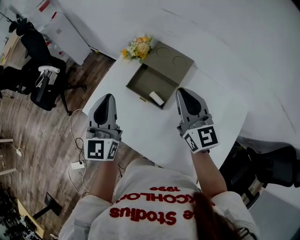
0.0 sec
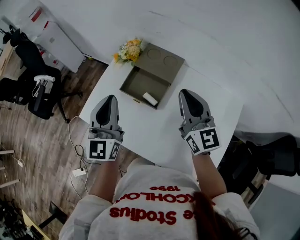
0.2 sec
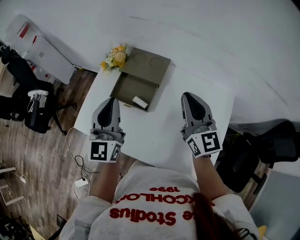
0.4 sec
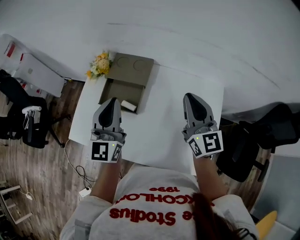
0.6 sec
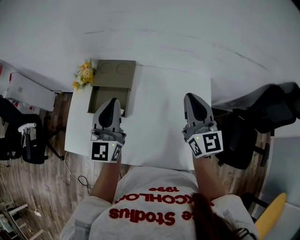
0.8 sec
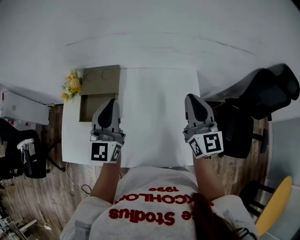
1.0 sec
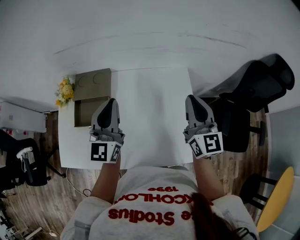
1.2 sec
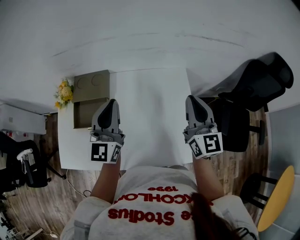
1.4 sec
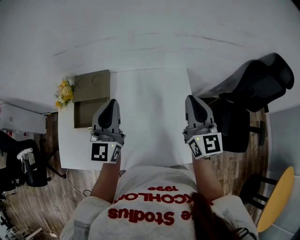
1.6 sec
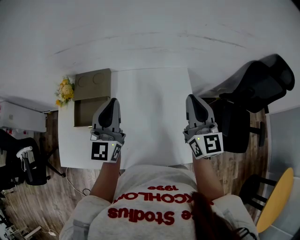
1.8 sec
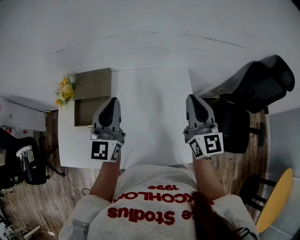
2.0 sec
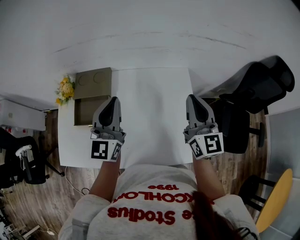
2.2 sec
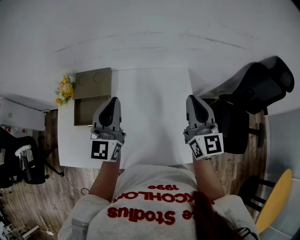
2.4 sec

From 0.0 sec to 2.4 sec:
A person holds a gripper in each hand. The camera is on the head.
From 0.0 sec to 1.2 sec: The left gripper ends up about 25 cm from where it was, and turns by about 40 degrees. The right gripper changes place by roughly 30 cm, and rotates approximately 50 degrees.
From 1.2 sec to 2.4 sec: Both grippers stay about where they are.

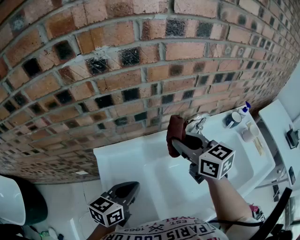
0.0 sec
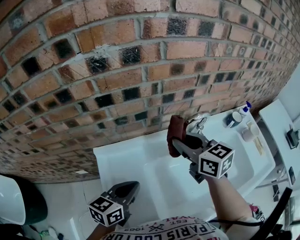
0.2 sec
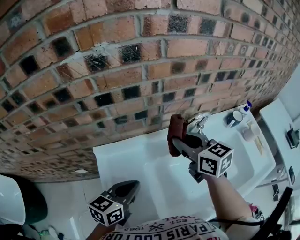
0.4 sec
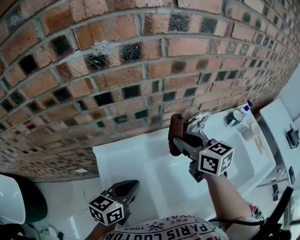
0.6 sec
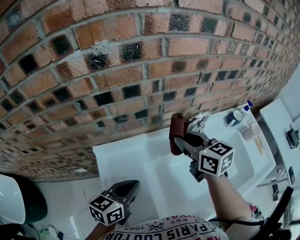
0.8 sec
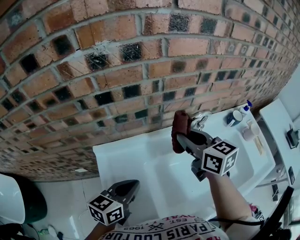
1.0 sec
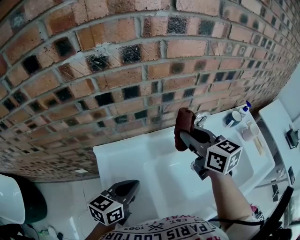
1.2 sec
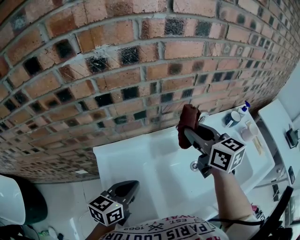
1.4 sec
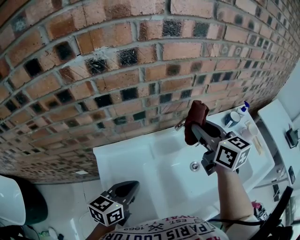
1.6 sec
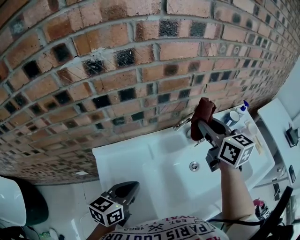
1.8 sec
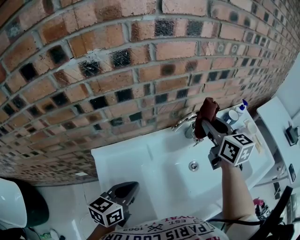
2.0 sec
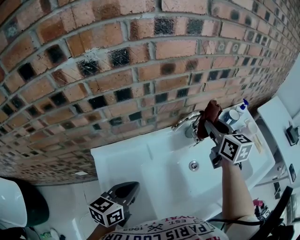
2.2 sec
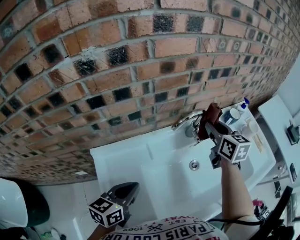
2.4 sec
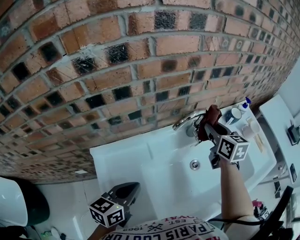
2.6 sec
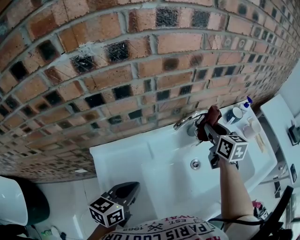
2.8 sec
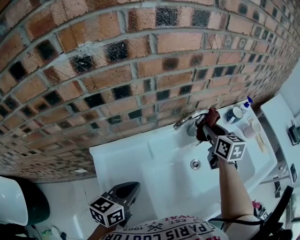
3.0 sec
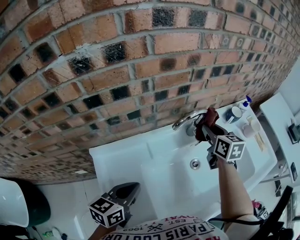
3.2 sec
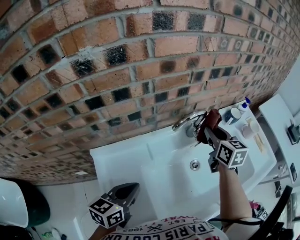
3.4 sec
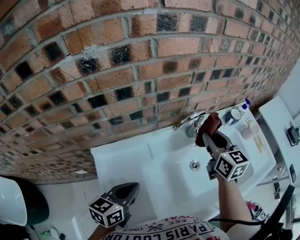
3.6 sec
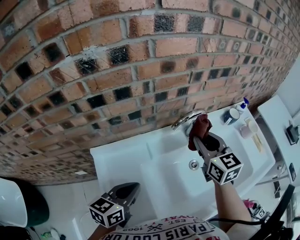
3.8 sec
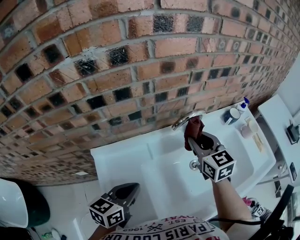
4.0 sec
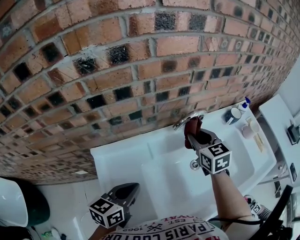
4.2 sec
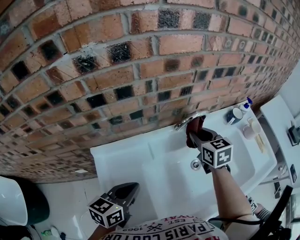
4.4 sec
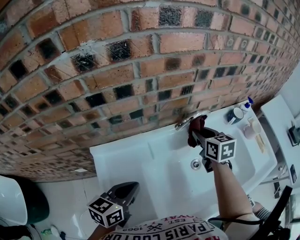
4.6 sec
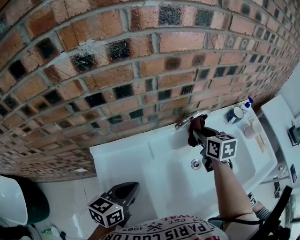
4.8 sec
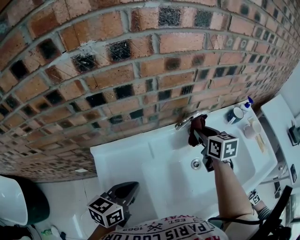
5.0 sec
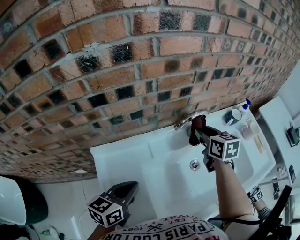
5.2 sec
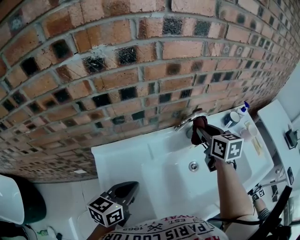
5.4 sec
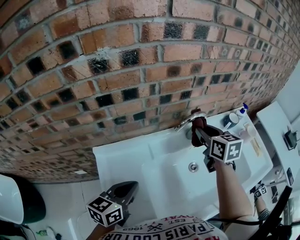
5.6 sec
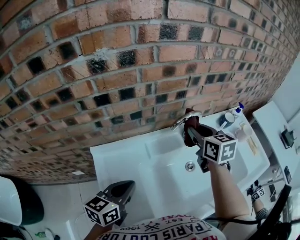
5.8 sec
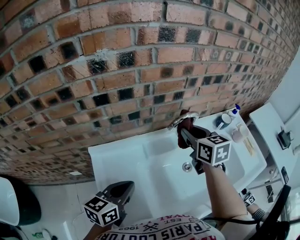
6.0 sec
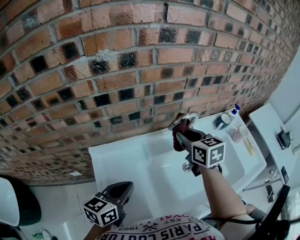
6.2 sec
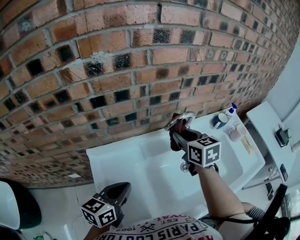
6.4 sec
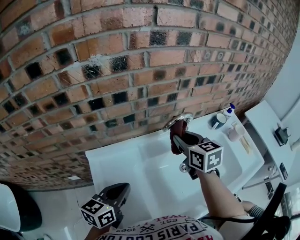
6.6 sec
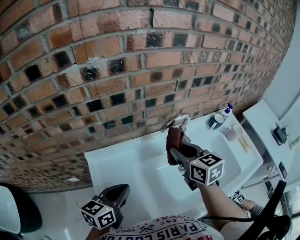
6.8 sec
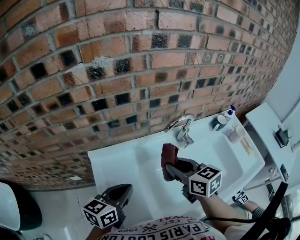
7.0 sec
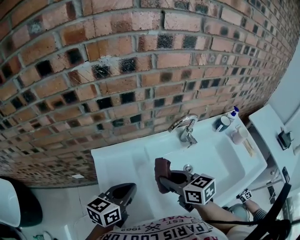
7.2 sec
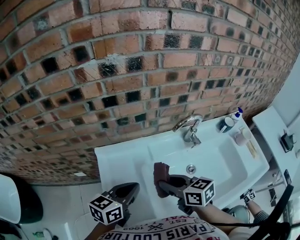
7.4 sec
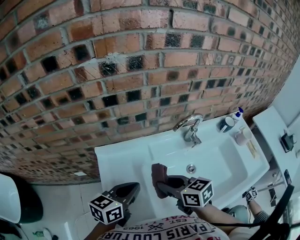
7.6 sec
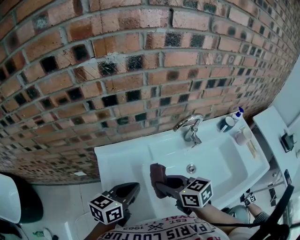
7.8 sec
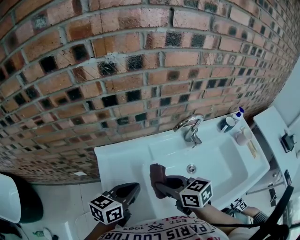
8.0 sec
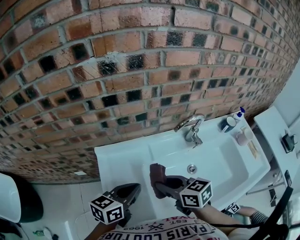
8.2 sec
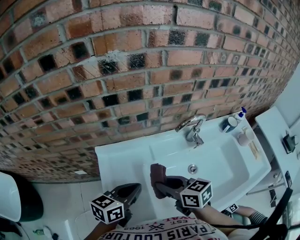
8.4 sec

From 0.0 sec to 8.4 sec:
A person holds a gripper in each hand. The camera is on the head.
From 0.0 sec to 1.4 sec: The right gripper ends up roughly 5 cm from where it was.
From 1.4 sec to 2.8 sec: The right gripper heads to the right, downward and forward, covering some 15 cm, and turns by approximately 20 degrees.
From 2.8 sec to 4.2 sec: The right gripper goes approximately 5 cm to the left, and swivels some 20 degrees.
From 4.2 sec to 5.6 sec: The right gripper moves roughly 5 cm.
From 5.6 sec to 7.0 sec: The right gripper shifts approximately 15 cm backward and to the left, and turns by roughly 20 degrees.
From 7.0 sec to 8.4 sec: The right gripper heads to the left and downward, covering about 10 cm.

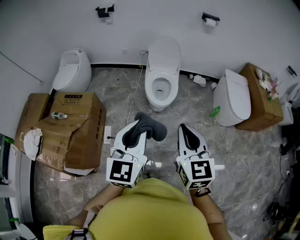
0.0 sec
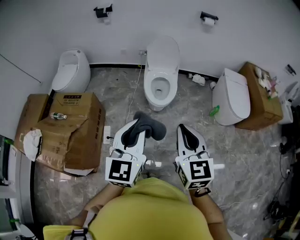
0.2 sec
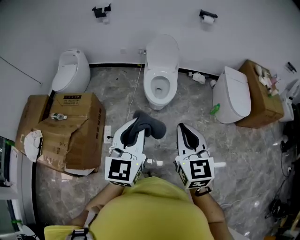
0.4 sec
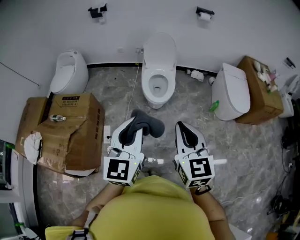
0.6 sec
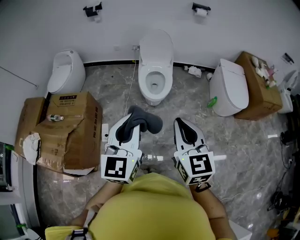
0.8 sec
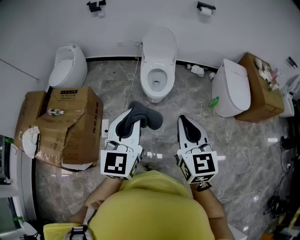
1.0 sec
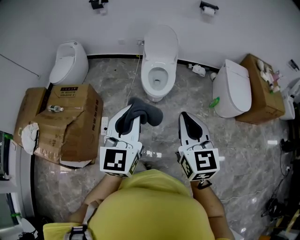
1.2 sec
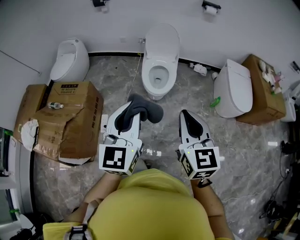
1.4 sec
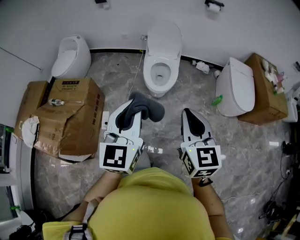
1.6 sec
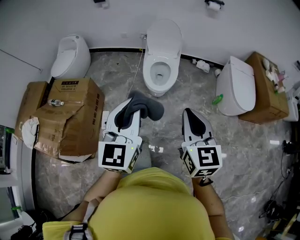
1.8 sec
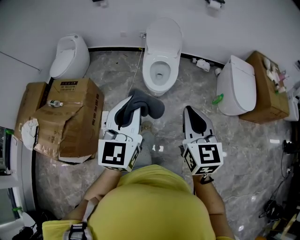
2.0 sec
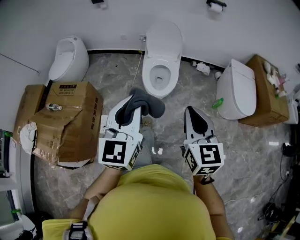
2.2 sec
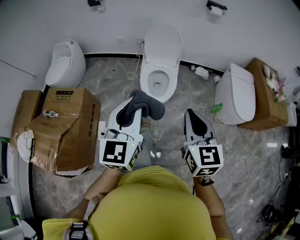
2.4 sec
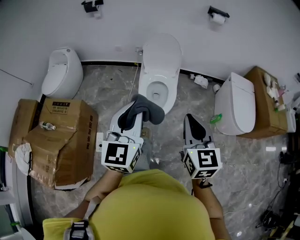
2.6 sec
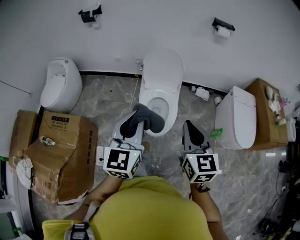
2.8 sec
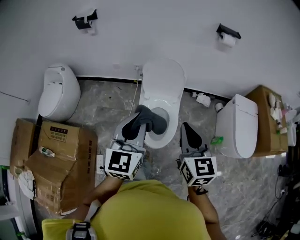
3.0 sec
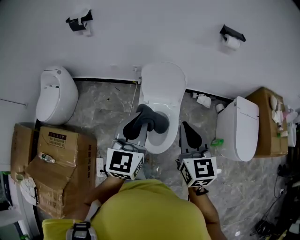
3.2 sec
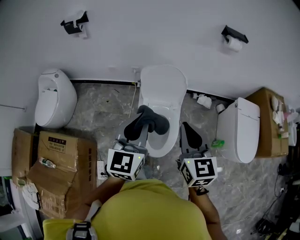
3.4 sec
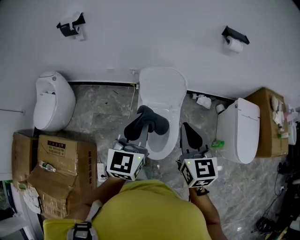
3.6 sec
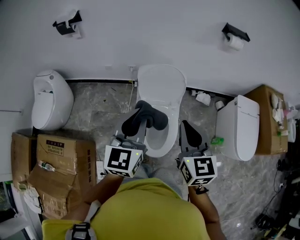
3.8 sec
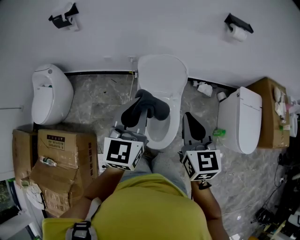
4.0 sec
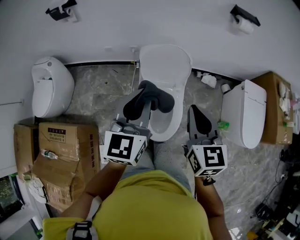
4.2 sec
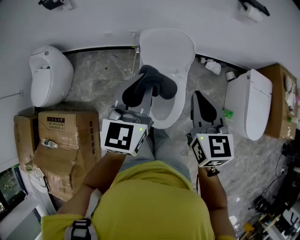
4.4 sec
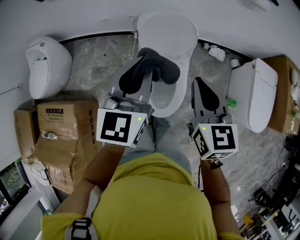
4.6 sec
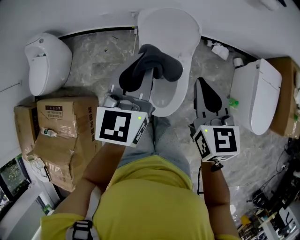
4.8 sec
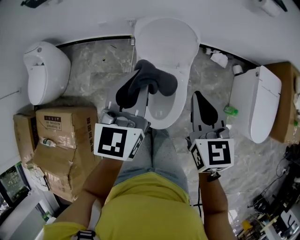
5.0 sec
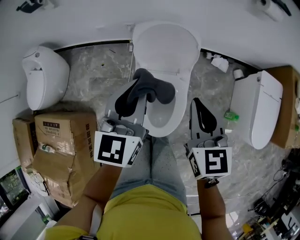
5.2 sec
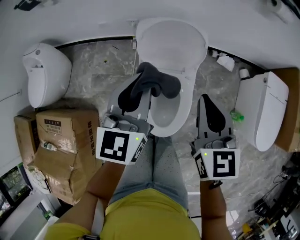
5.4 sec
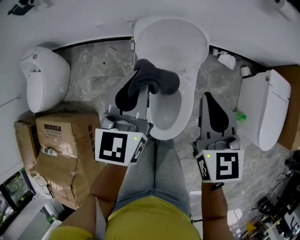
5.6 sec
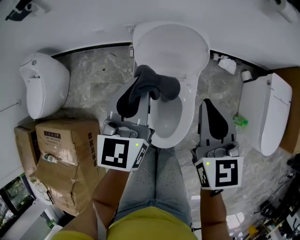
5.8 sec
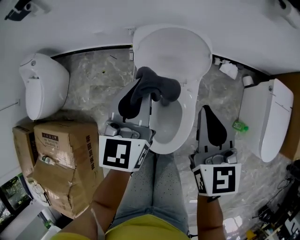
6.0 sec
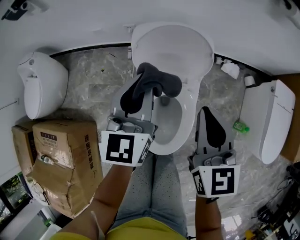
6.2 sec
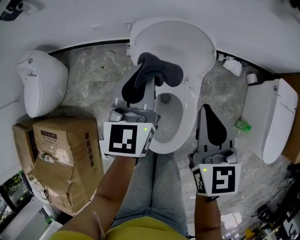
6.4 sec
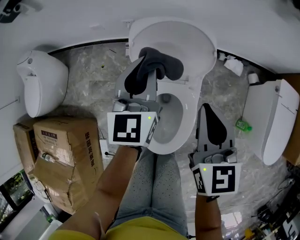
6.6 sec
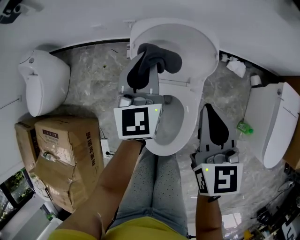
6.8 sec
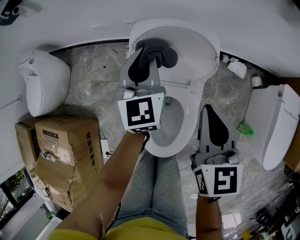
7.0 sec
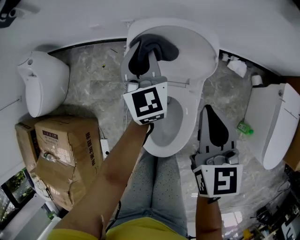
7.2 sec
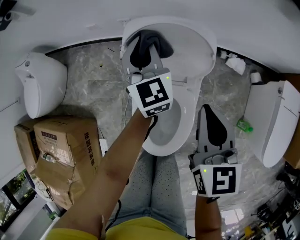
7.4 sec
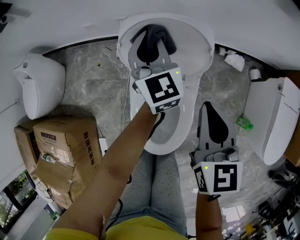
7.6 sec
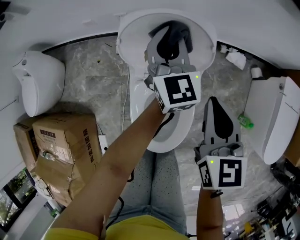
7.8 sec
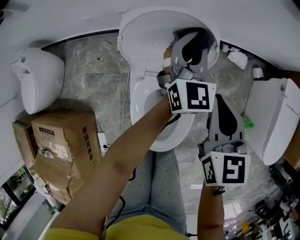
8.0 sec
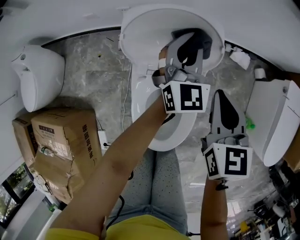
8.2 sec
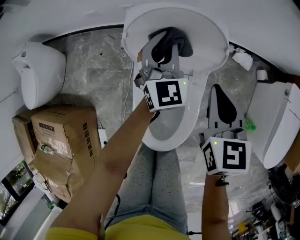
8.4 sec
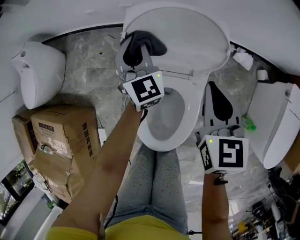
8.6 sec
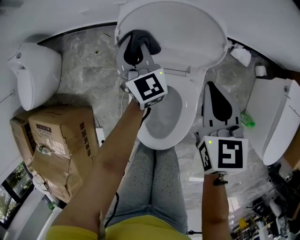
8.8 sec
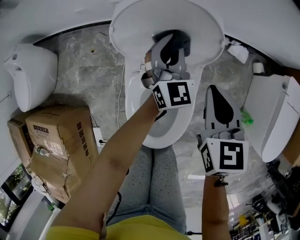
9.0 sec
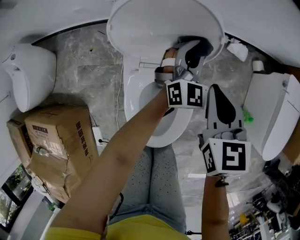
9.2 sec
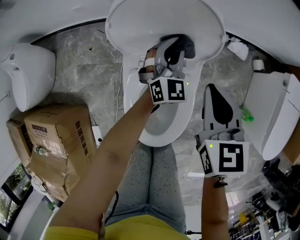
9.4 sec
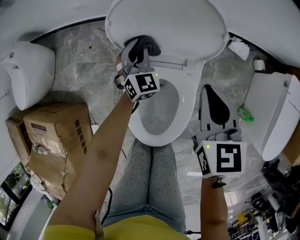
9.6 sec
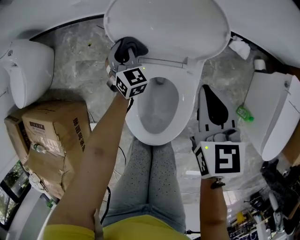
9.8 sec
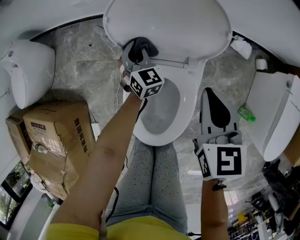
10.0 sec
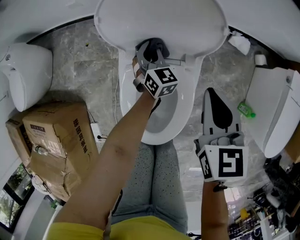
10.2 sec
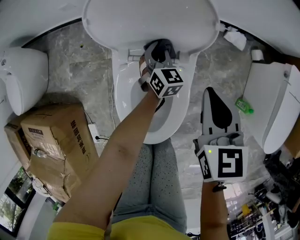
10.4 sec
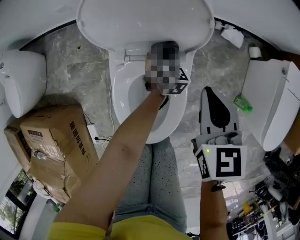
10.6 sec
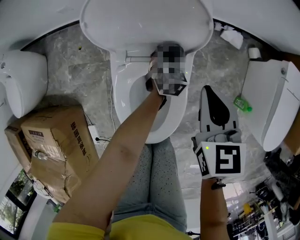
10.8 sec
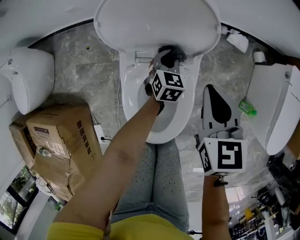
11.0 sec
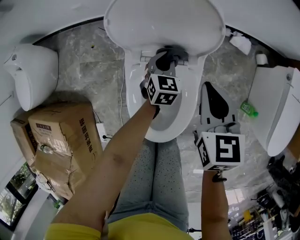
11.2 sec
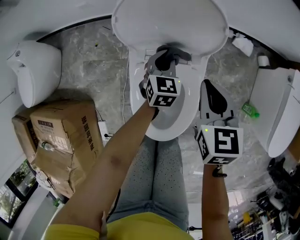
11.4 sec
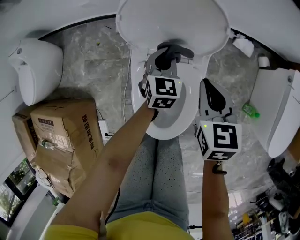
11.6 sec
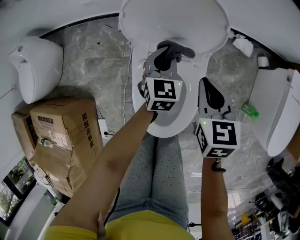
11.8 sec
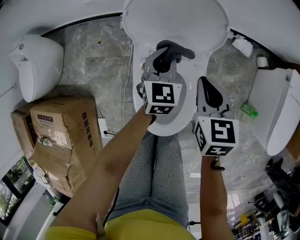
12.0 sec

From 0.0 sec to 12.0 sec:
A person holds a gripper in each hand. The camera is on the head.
From 0.0 sec to 1.6 sec: The left gripper moves approximately 5 cm. Meanwhile the right gripper goes roughly 5 cm to the right.
From 1.6 sec to 3.0 sec: The two grippers travel together, forward, about 40 cm.
From 3.0 sec to 4.4 sec: The two grippers go roughly 20 cm forward.
From 4.4 sec to 6.0 sec: The grippers both shift downward and forward by approximately 20 cm.
From 6.0 sec to 7.6 sec: The left gripper moves forward and downward, approximately 20 cm, and swivels approximately 30 degrees, while the right gripper shifts approximately 10 cm downward and forward.
From 7.6 sec to 9.0 sec: The left gripper goes left and right, approximately 20 cm each way, reversing 2 times, while the right gripper shifts about 10 cm downward.
From 9.0 sec to 10.4 sec: The left gripper goes left and right, approximately 25 cm each way, reversing 2 times, and swivels approximately 20 degrees.
From 10.4 sec to 12.0 sec: The left gripper travels upward and backward by about 15 cm. Meanwhile the right gripper travels to the left by some 5 cm.

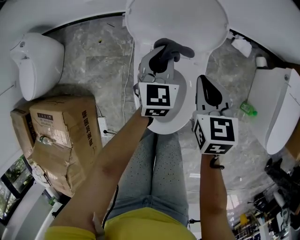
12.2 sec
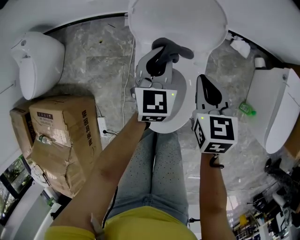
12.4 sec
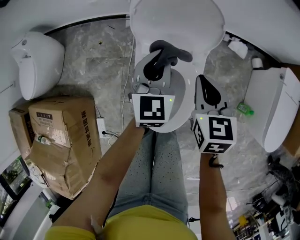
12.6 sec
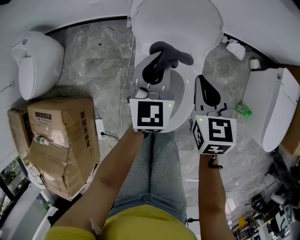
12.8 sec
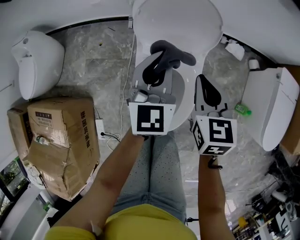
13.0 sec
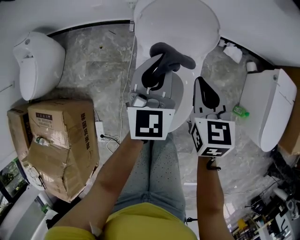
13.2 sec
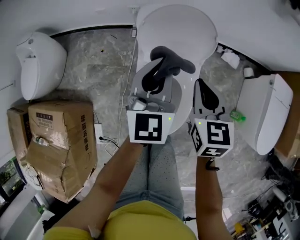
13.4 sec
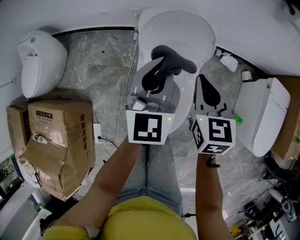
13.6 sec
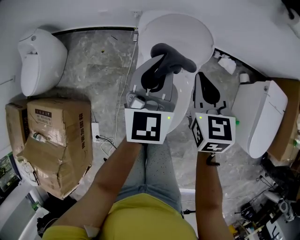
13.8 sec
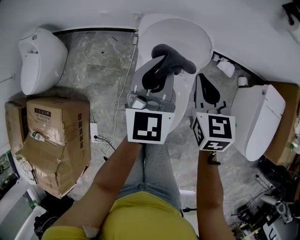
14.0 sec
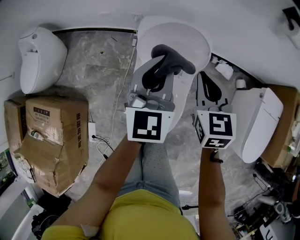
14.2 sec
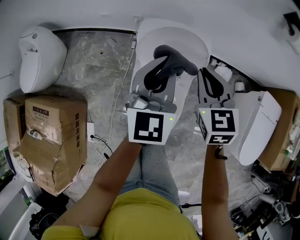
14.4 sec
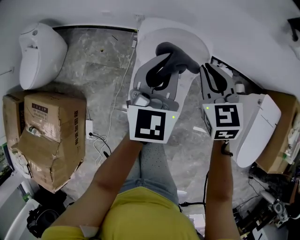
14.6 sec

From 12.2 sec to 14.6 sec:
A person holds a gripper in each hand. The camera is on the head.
From 12.2 sec to 13.4 sec: The right gripper moves upward, approximately 10 cm. The left gripper goes roughly 20 cm upward.
From 13.4 sec to 14.6 sec: The right gripper travels forward and upward by roughly 15 cm, and swivels approximately 20 degrees. Meanwhile the left gripper shifts approximately 10 cm upward and forward.
